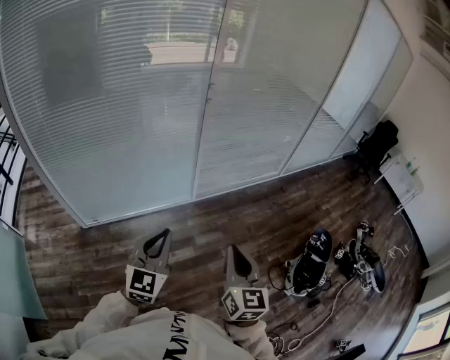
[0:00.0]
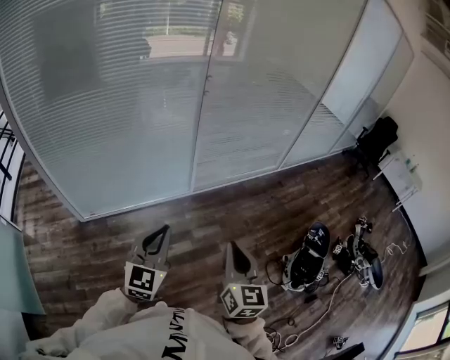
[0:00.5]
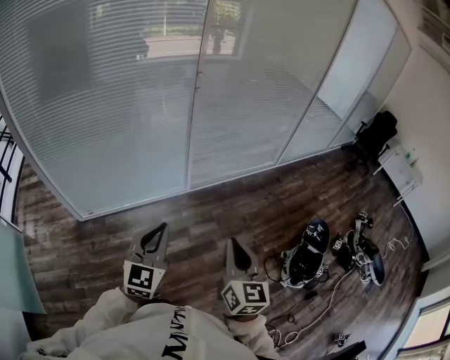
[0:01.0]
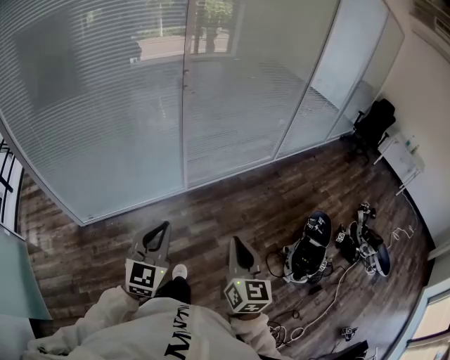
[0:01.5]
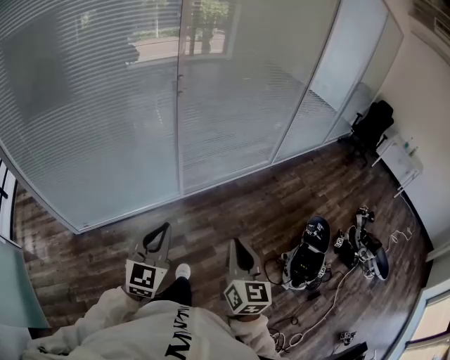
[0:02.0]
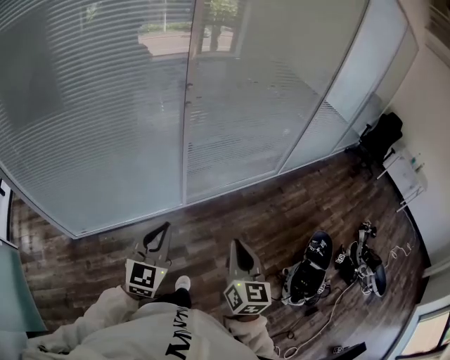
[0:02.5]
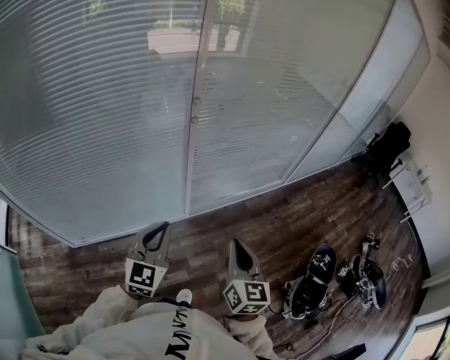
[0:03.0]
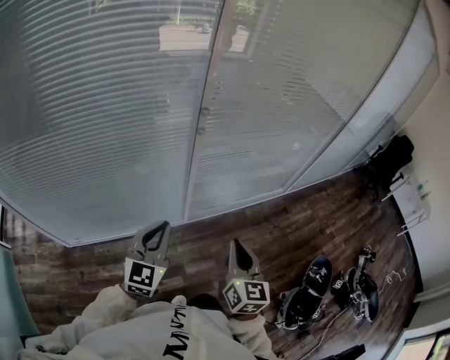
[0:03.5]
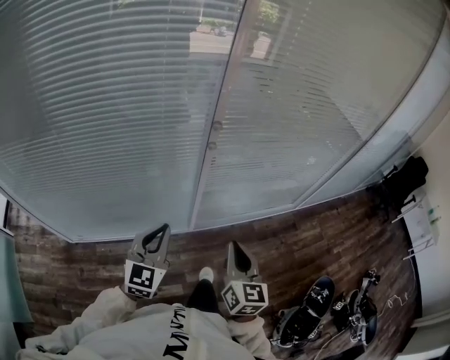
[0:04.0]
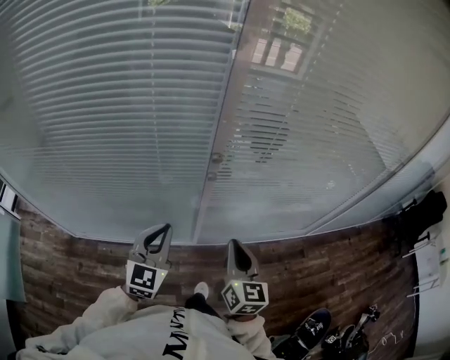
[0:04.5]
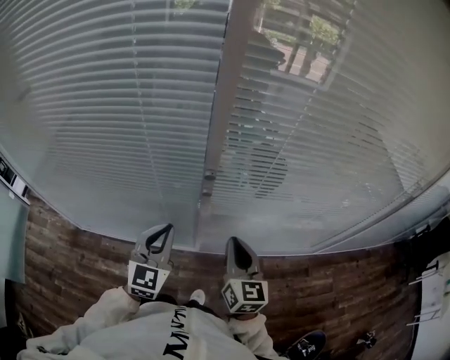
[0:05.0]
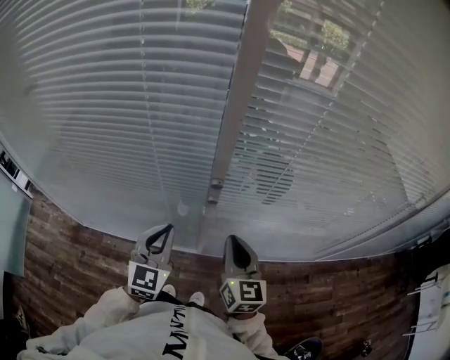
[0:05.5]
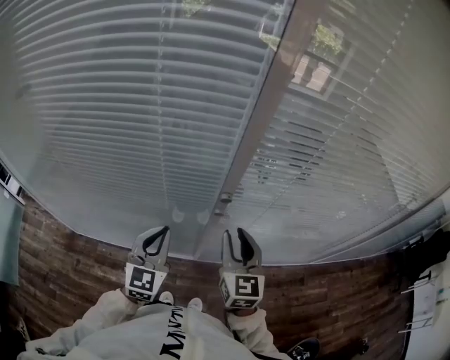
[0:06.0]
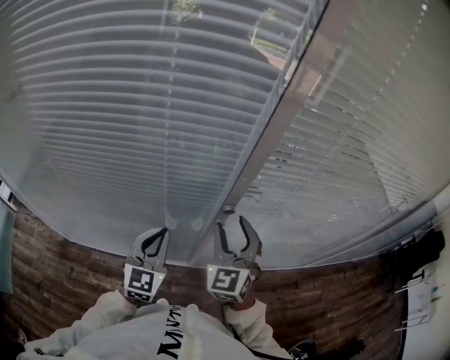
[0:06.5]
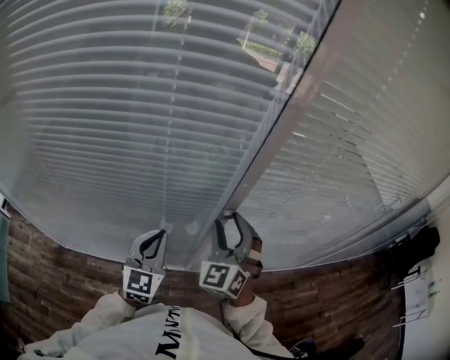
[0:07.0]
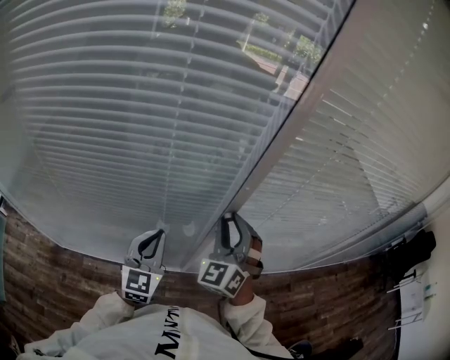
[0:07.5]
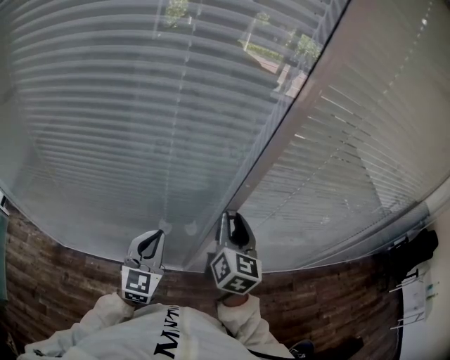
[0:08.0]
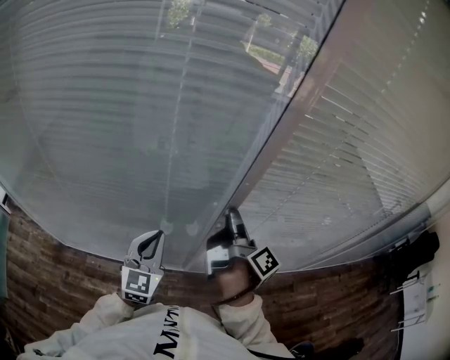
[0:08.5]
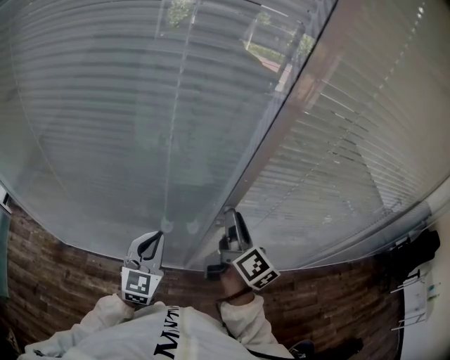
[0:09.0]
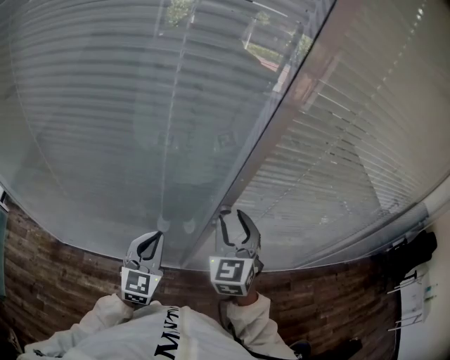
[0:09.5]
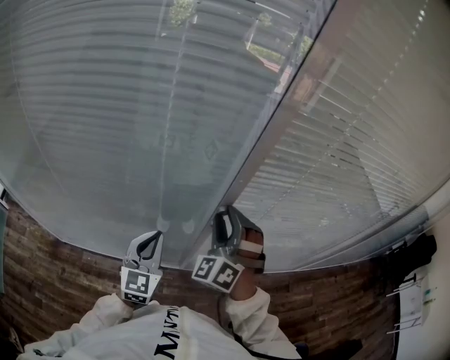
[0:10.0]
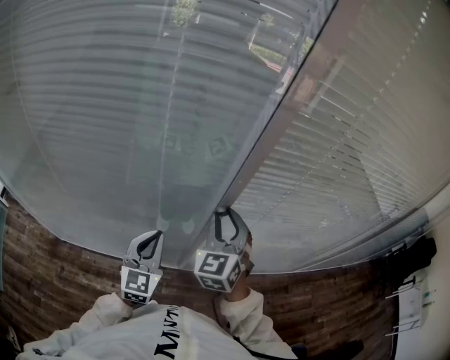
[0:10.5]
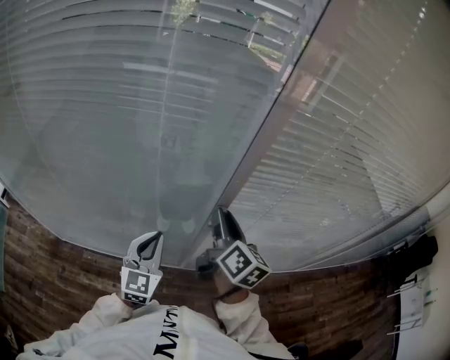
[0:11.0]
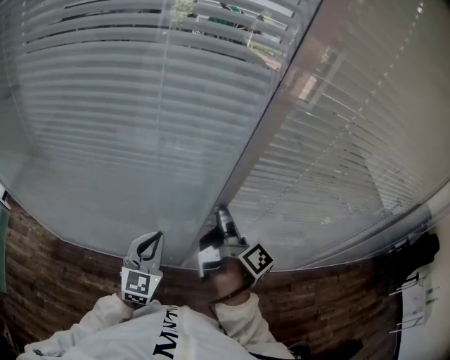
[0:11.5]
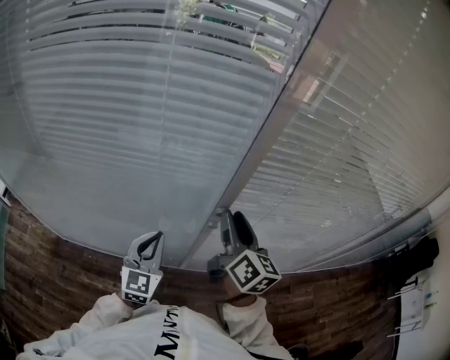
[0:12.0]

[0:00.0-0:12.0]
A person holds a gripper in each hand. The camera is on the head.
0:00.0 to 0:02.0: The left gripper heads to the right and forward, covering about 10 cm. The right gripper heads to the right, covering roughly 10 cm.
0:02.0 to 0:04.0: The two grippers go about 30 cm forward.
0:04.0 to 0:06.0: The right gripper moves forward, about 20 cm, swivels approximately 20 degrees, and opens up, while the left gripper moves forward, some 15 cm.
0:06.0 to 0:08.0: The right gripper shifts about 5 cm forward.
0:08.0 to 0:10.0: The right gripper twists approximately 80 degrees counterclockwise, seen from behind.
0:10.0 to 0:12.0: The right gripper rolls clockwise, seen from behind, by about 90 degrees.

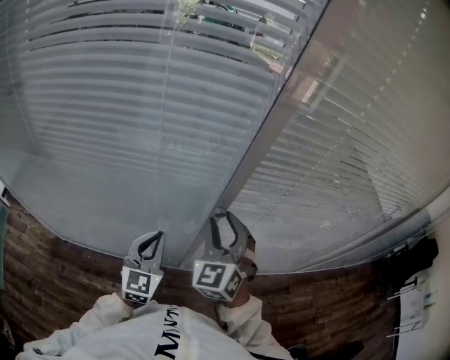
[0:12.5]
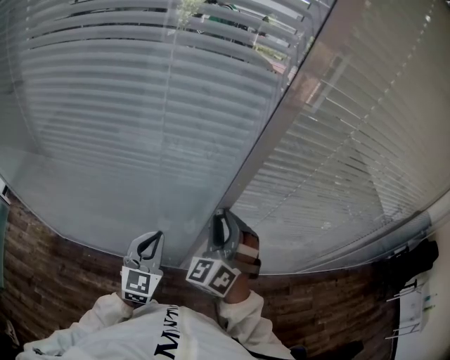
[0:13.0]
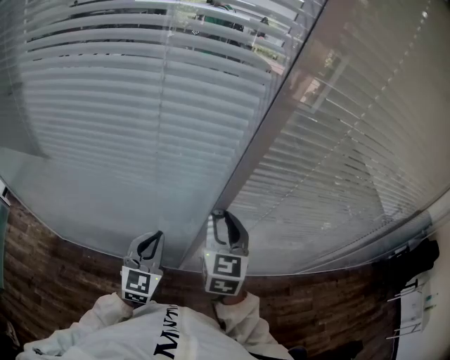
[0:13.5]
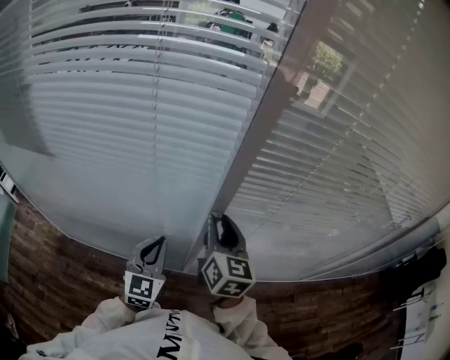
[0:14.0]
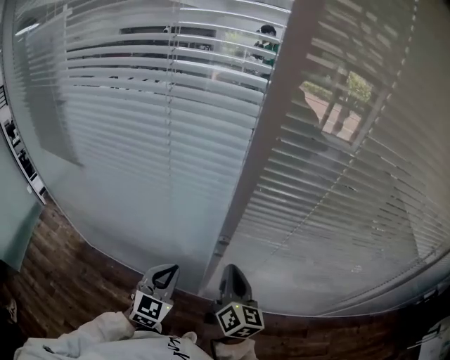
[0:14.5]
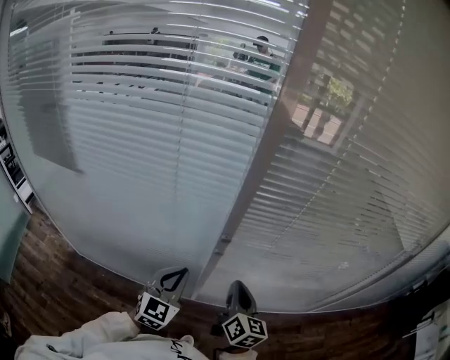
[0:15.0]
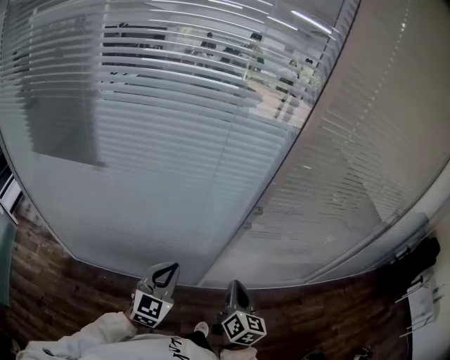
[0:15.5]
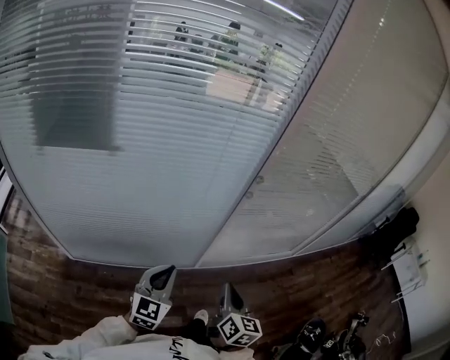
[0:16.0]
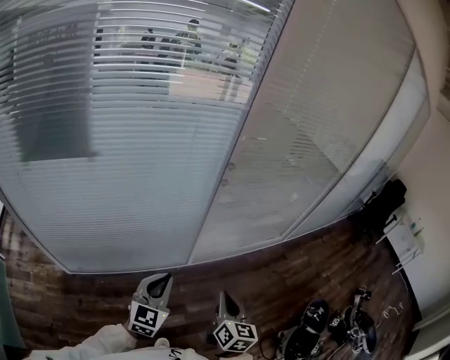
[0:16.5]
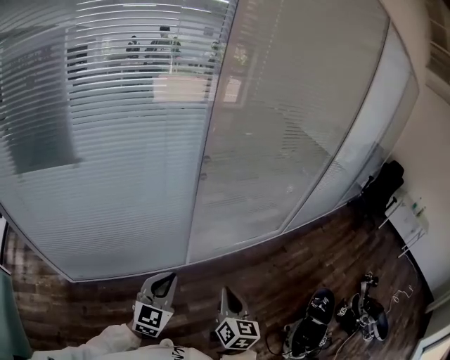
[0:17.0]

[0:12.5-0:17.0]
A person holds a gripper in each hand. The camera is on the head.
0:12.5 to 0:14.5: The right gripper heads downward and to the right, covering about 10 cm, rotates around the line of its fingers by roughly 70 degrees, clockwise from behind, and closes up.
0:14.5 to 0:17.0: The left gripper moves approximately 25 cm, and swivels approximately 30 degrees. The right gripper shifts by roughly 40 cm, and swivels about 30 degrees.

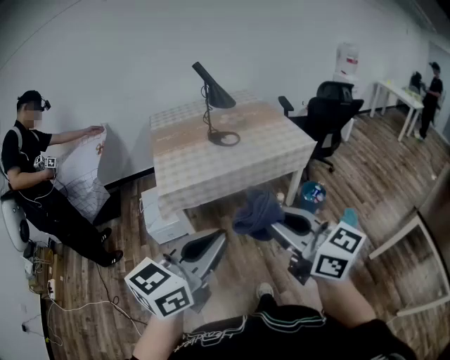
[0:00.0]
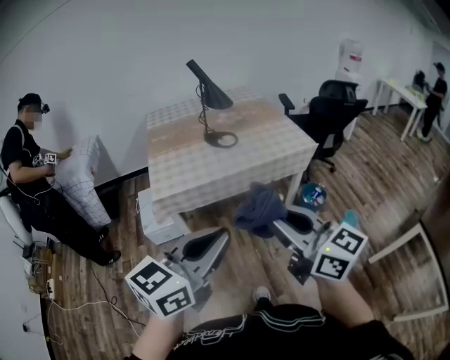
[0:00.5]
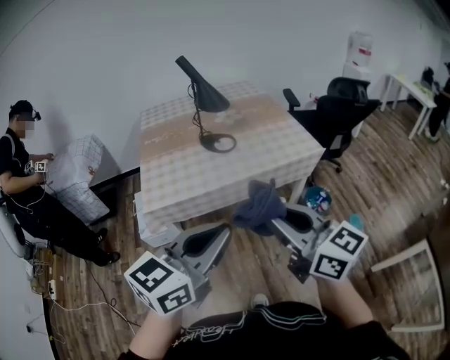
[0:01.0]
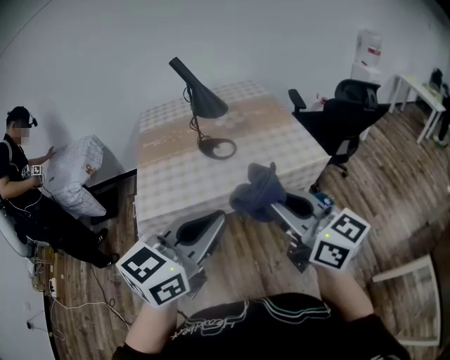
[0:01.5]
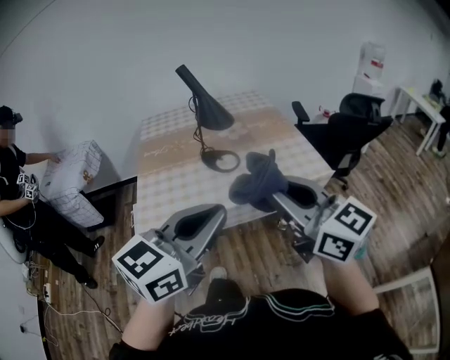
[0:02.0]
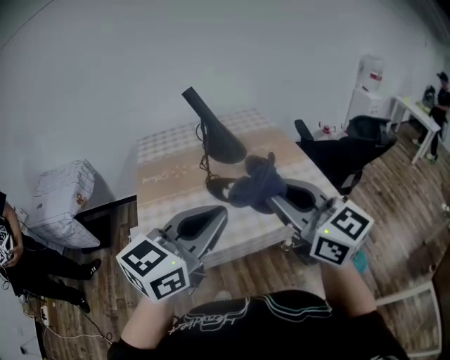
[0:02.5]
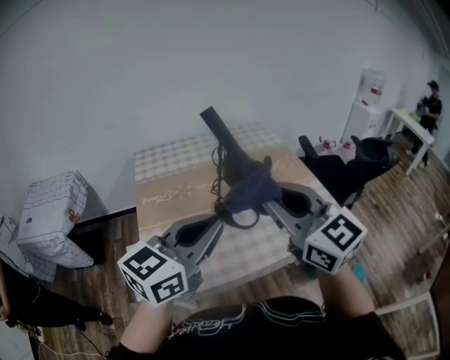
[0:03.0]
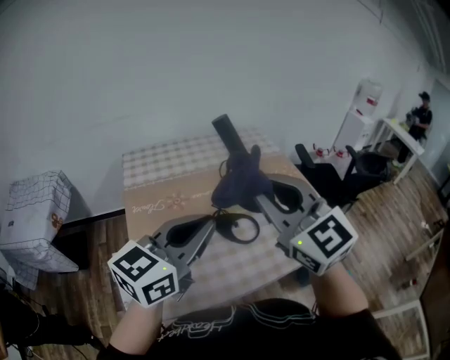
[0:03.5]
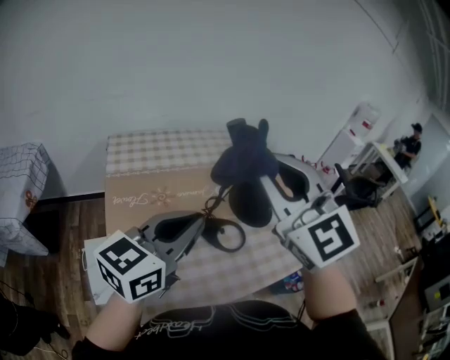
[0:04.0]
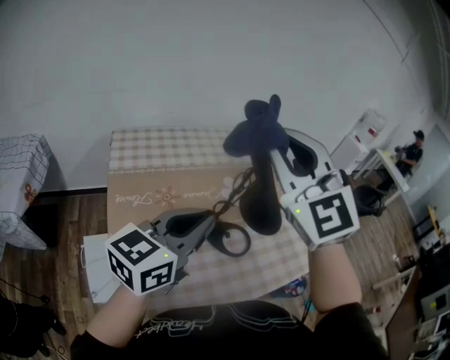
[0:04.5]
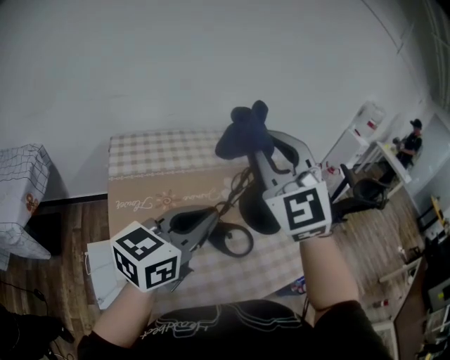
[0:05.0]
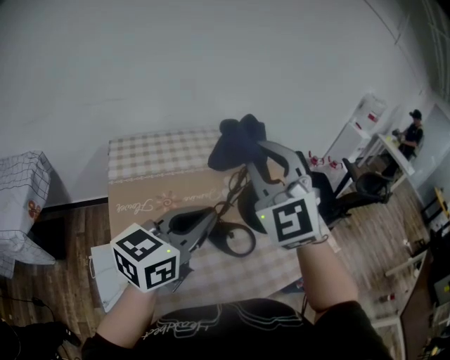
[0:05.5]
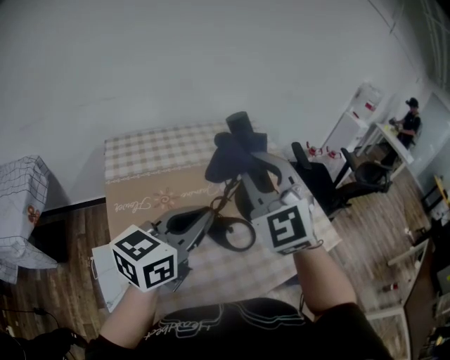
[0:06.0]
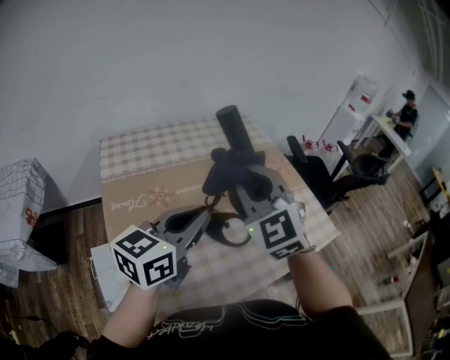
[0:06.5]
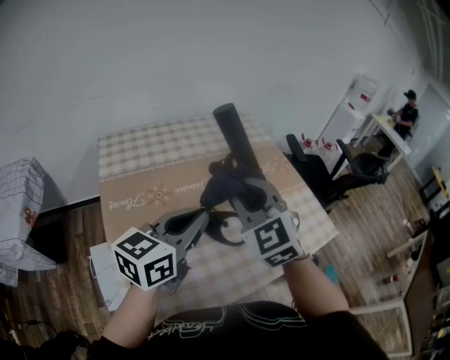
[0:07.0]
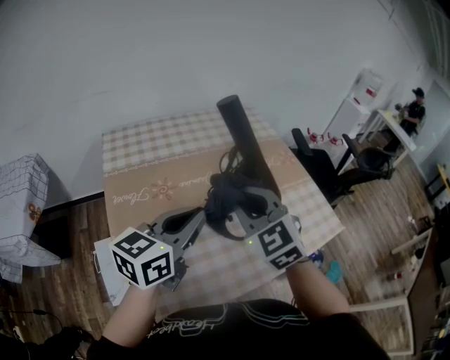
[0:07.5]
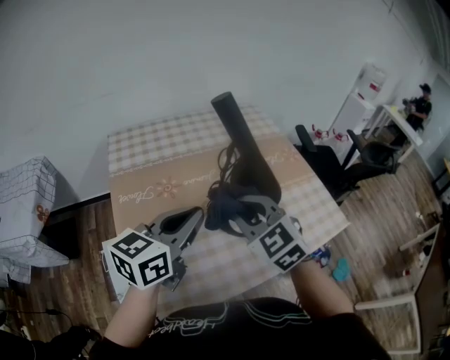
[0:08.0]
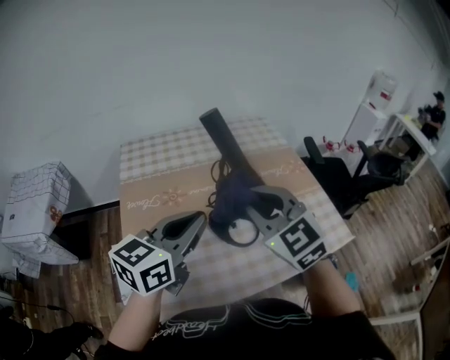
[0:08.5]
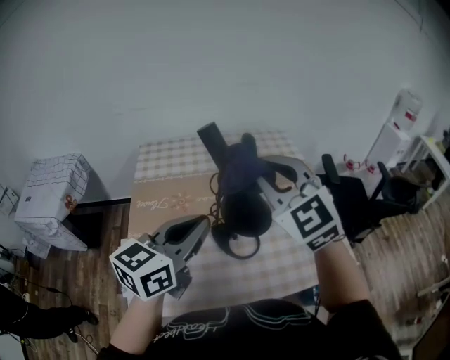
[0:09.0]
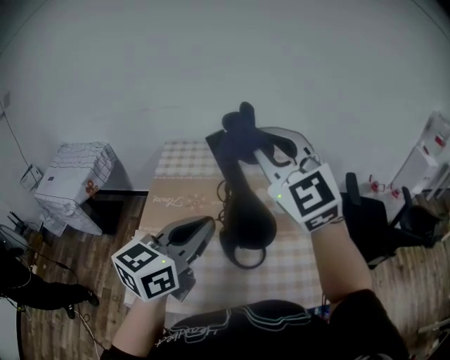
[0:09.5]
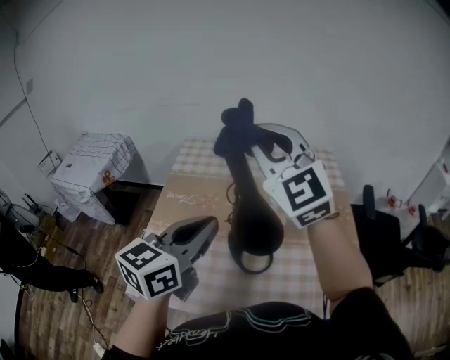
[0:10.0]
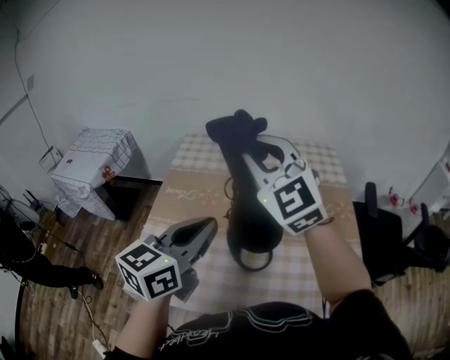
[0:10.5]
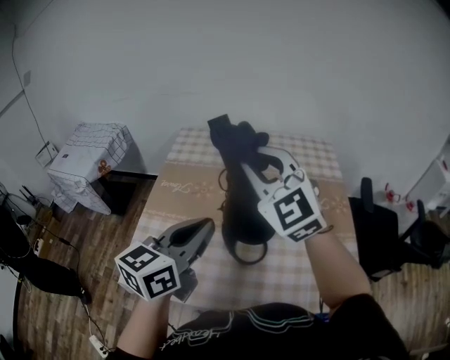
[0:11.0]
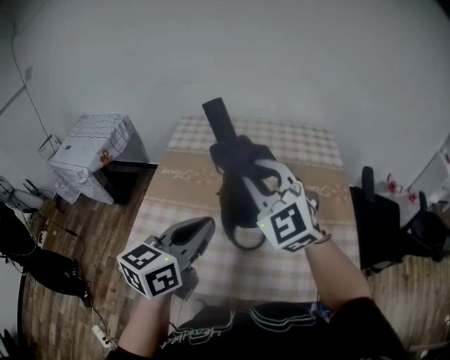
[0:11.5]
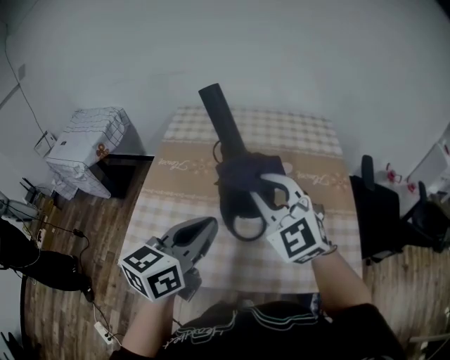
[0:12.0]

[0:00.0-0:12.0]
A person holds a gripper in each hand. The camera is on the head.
0:00.0 to 0:02.0: Both grippers move forward, about 35 cm.
0:02.0 to 0:04.0: The two grippers travel together, forward and to the left, approximately 50 cm. The right gripper turns by about 40 degrees.
0:04.0 to 0:06.0: The right gripper goes approximately 10 cm forward and downward, while the left gripper goes roughly 5 cm forward.
0:06.0 to 0:08.0: The right gripper moves downward, roughly 15 cm, and changes its angle by approximately 30 degrees.
0:08.0 to 0:10.0: The left gripper ends up approximately 10 cm from where it was, and changes its angle by some 30 degrees. The right gripper moves upward, roughly 25 cm, and tilts its fingers some 30 degrees upward.
0:10.0 to 0:12.0: The right gripper travels downward and backward by roughly 20 cm. The left gripper travels downward and backward by roughly 10 cm.
